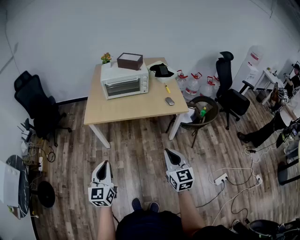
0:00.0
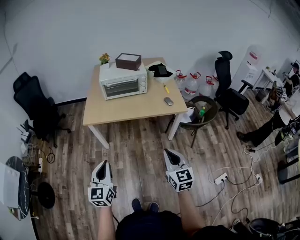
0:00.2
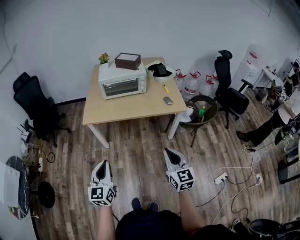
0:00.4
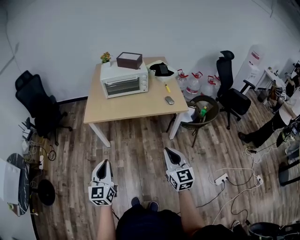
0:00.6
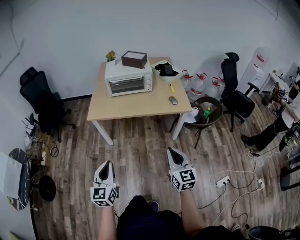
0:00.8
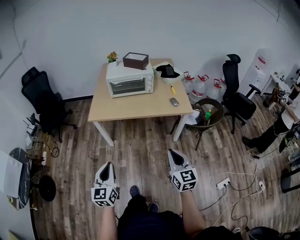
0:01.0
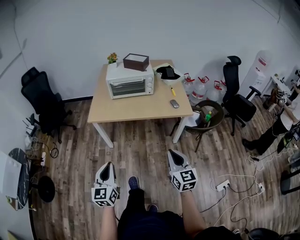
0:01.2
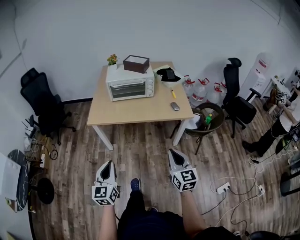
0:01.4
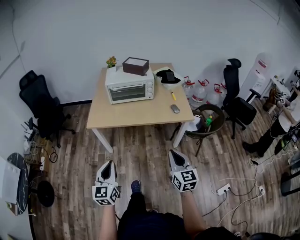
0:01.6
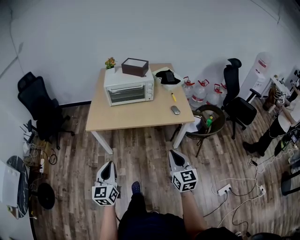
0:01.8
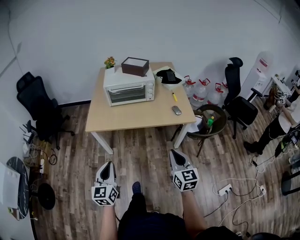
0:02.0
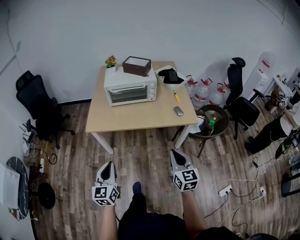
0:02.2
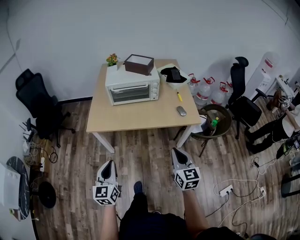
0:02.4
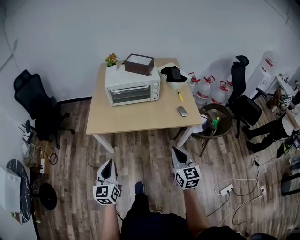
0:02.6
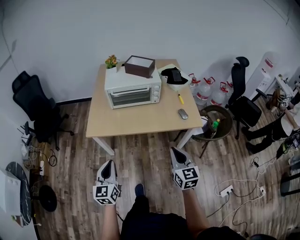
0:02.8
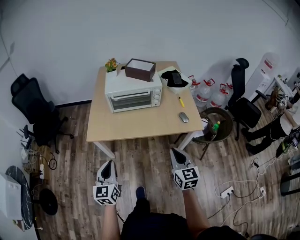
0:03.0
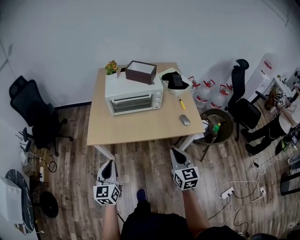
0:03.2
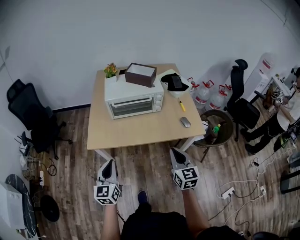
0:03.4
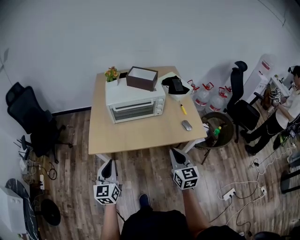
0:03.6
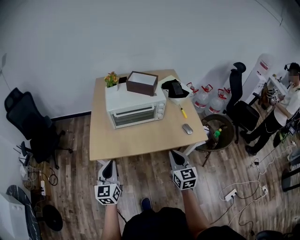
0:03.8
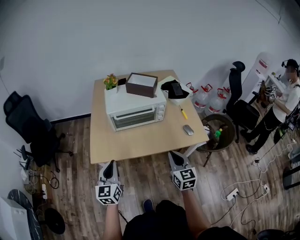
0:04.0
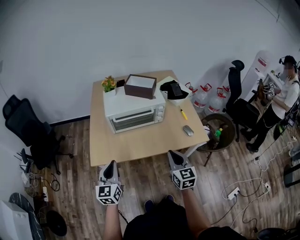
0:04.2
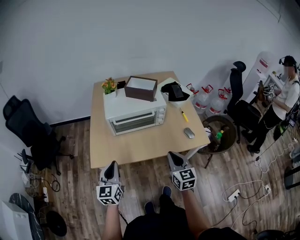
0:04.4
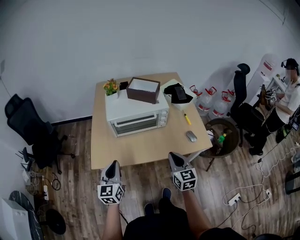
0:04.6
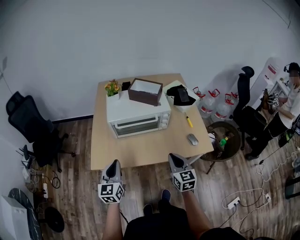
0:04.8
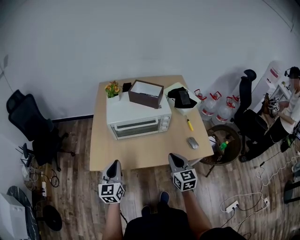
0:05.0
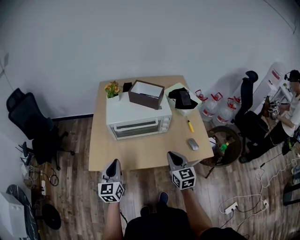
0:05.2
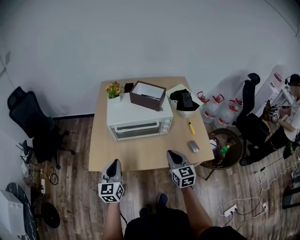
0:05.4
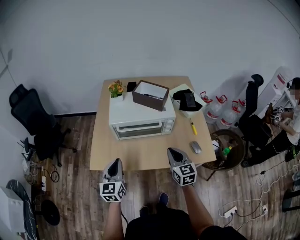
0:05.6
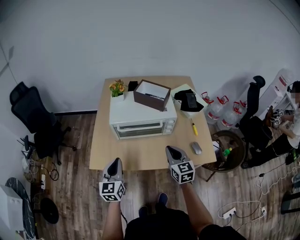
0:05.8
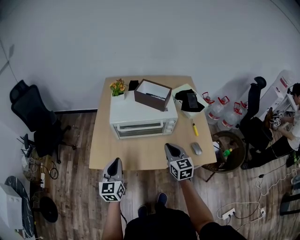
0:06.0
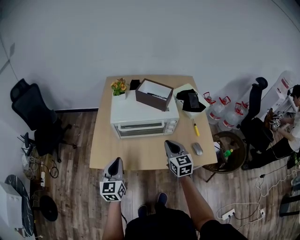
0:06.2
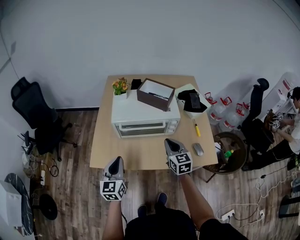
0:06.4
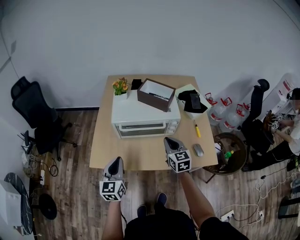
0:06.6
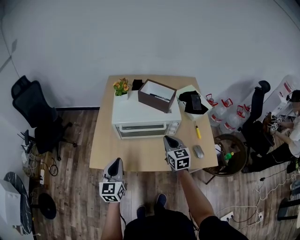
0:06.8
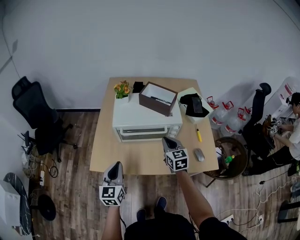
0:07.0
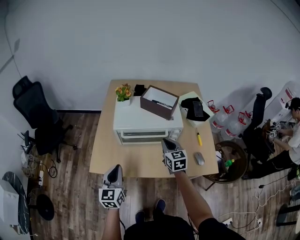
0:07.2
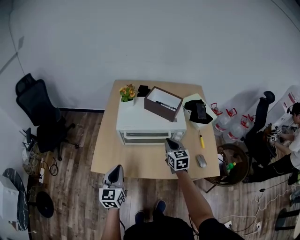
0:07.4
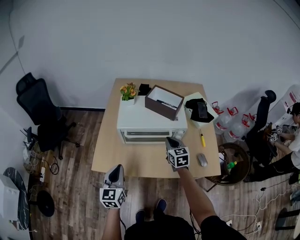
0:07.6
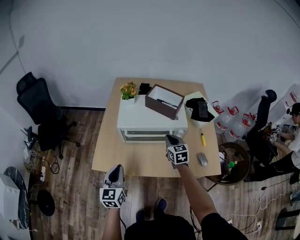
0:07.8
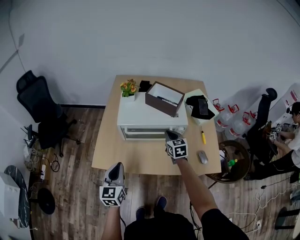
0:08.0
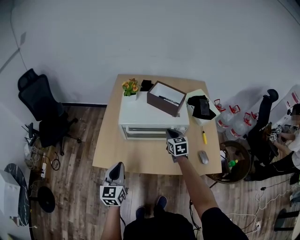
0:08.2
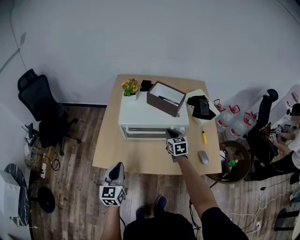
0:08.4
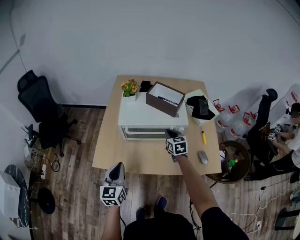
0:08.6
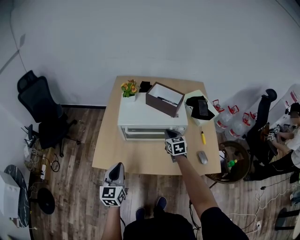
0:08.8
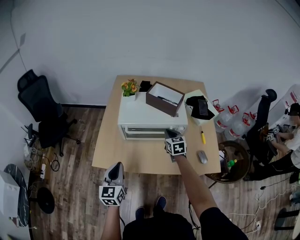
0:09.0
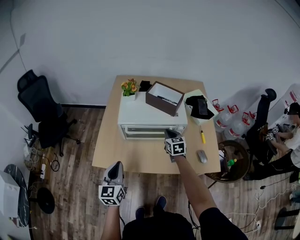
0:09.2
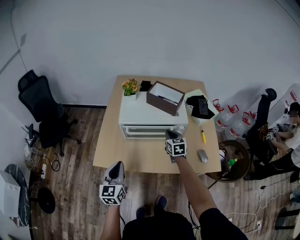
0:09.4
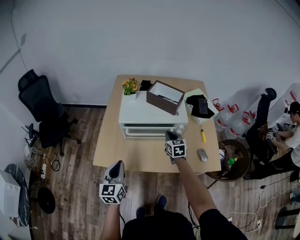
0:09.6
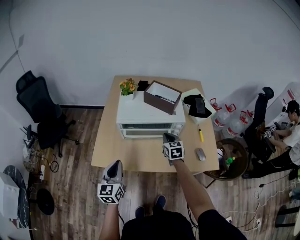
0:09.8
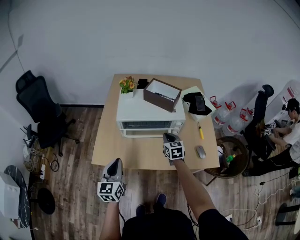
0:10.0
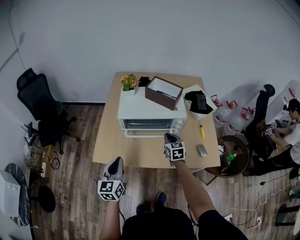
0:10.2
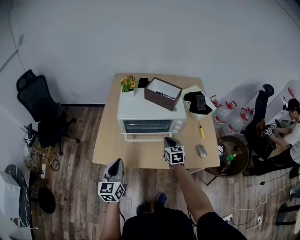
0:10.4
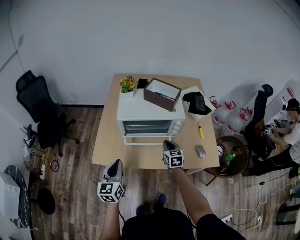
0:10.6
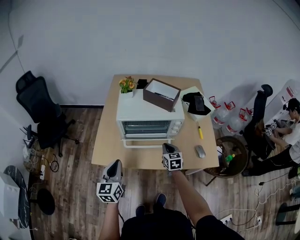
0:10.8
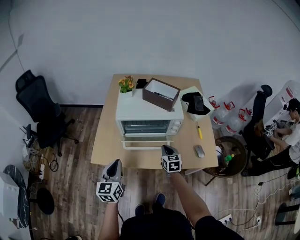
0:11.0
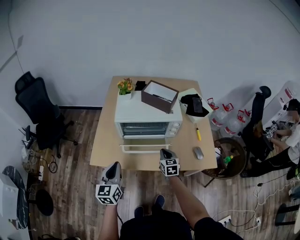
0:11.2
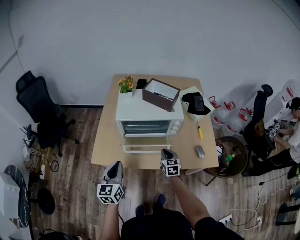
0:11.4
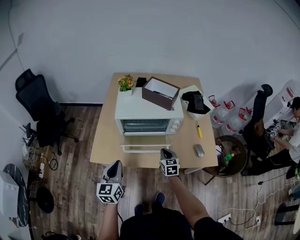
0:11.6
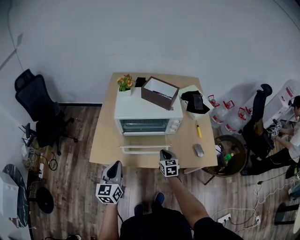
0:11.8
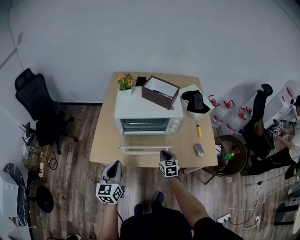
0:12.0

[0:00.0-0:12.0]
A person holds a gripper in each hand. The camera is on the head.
0:00.0 to 0:01.6: Both grippers move forward, approximately 5 cm.
0:01.6 to 0:03.0: Both grippers travel together forward, approximately 20 cm.
0:03.0 to 0:04.4: Both grippers travel together forward, some 15 cm.
0:04.4 to 0:06.0: The right gripper is displaced forward by roughly 15 cm. Meanwhile the left gripper moves forward, roughly 10 cm.
0:06.0 to 0:07.6: The right gripper travels forward by roughly 10 cm.
0:07.6 to 0:09.0: The grippers move only a little.
0:09.0 to 0:10.4: The right gripper is displaced backward by some 10 cm.
0:10.4 to 0:12.0: The right gripper shifts approximately 10 cm downward and backward.

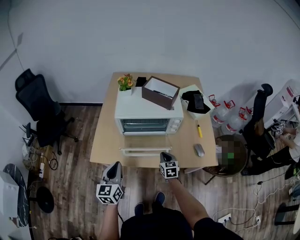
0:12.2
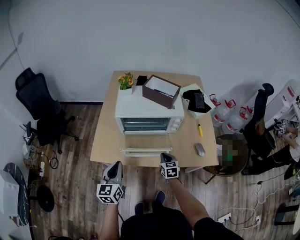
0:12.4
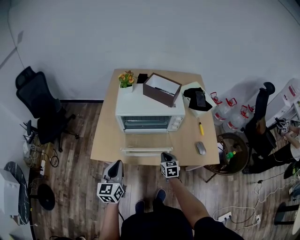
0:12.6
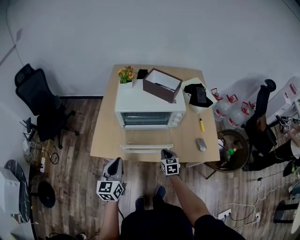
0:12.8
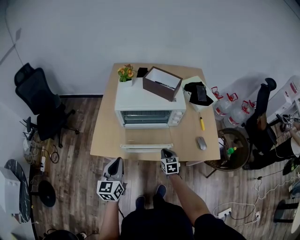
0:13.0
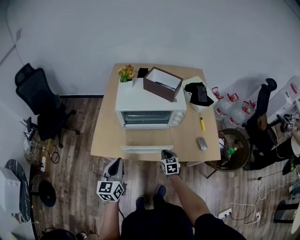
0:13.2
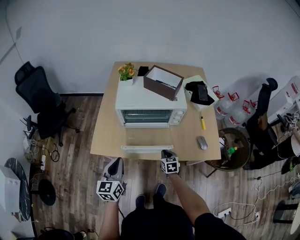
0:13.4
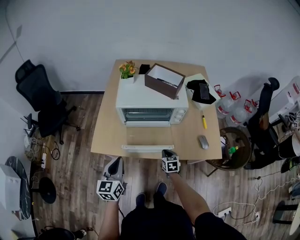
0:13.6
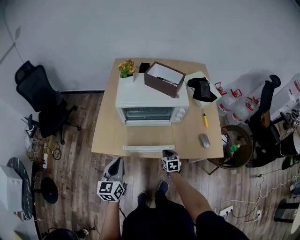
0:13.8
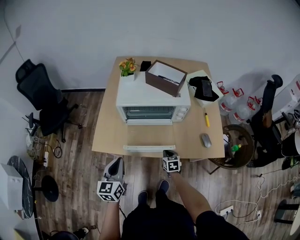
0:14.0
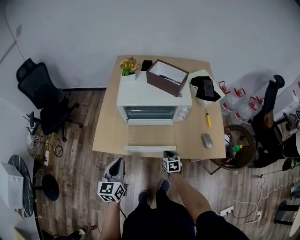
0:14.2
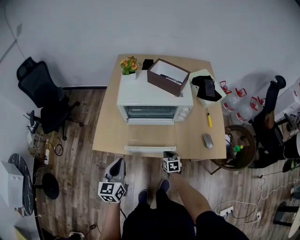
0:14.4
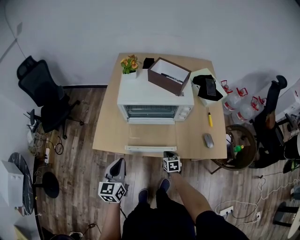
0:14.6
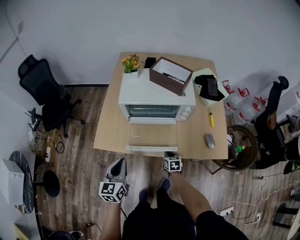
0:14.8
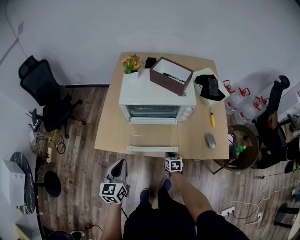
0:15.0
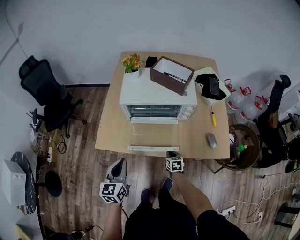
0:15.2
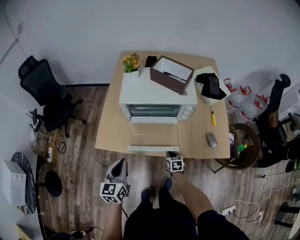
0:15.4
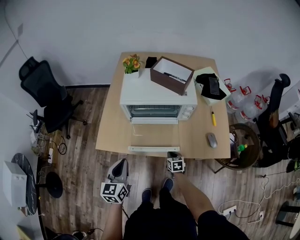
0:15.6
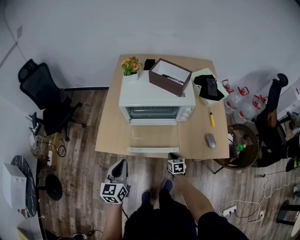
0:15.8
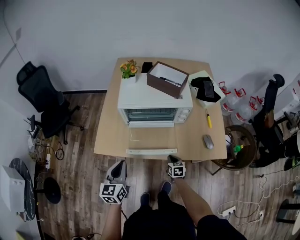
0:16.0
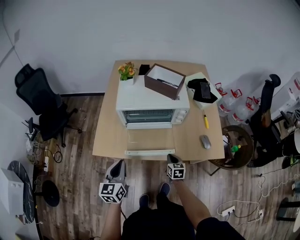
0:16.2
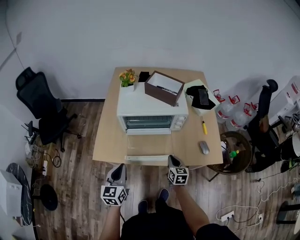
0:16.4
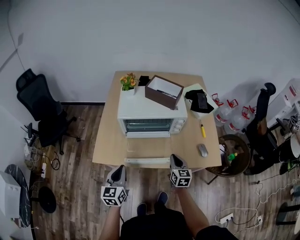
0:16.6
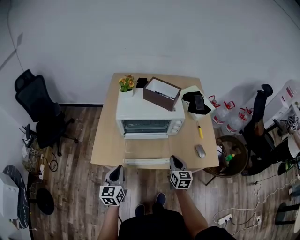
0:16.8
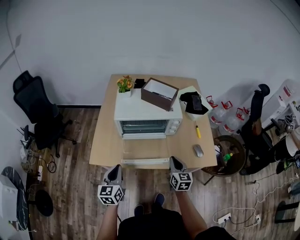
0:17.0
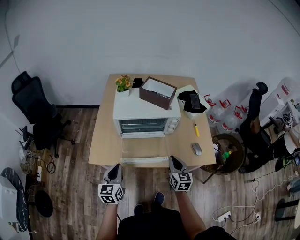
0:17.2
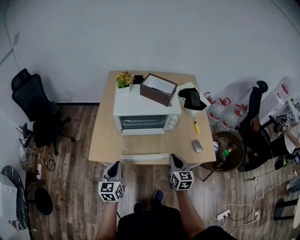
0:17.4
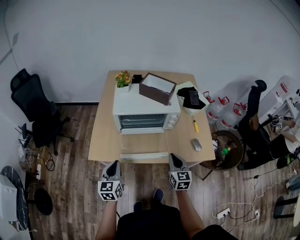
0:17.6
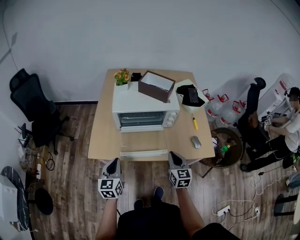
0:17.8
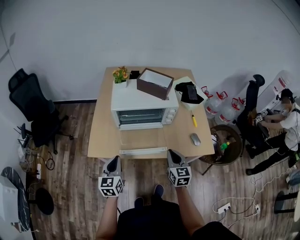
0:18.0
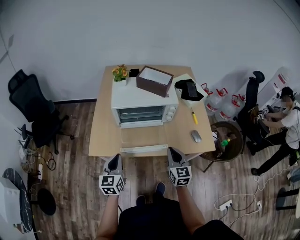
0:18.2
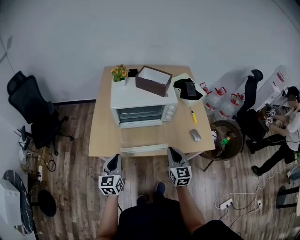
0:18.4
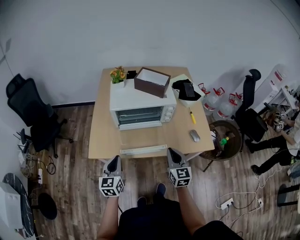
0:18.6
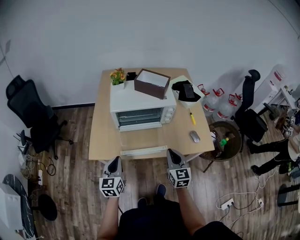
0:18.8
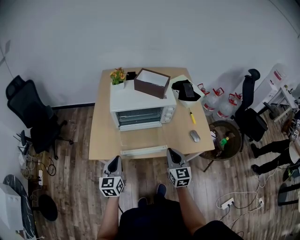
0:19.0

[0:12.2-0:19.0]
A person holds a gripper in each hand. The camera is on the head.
0:12.2 to 0:13.6: The right gripper is displaced downward by some 5 cm.
0:13.6 to 0:15.0: The right gripper heads downward, covering about 5 cm.
0:15.0 to 0:16.2: The right gripper moves upward, roughly 5 cm.
0:16.2 to 0:17.6: The right gripper shifts roughly 20 cm upward, and changes its angle by approximately 20 degrees.
0:17.6 to 0:19.0: The grippers make only small movements.

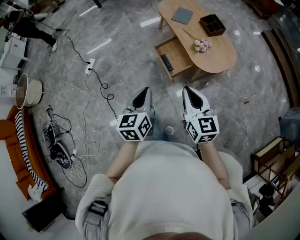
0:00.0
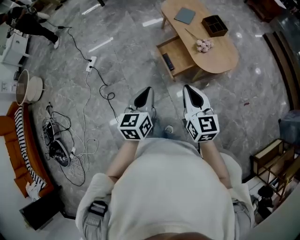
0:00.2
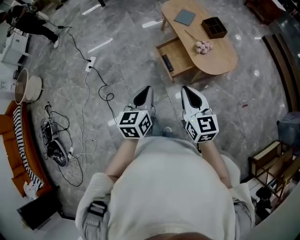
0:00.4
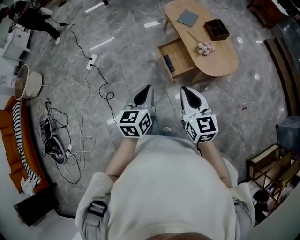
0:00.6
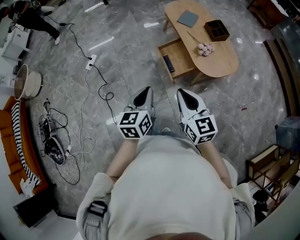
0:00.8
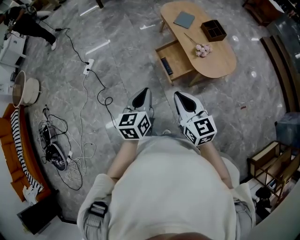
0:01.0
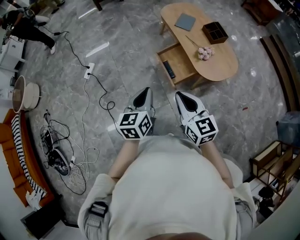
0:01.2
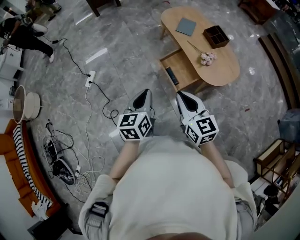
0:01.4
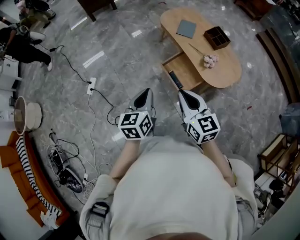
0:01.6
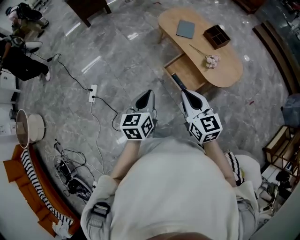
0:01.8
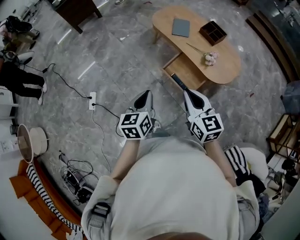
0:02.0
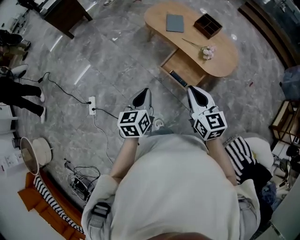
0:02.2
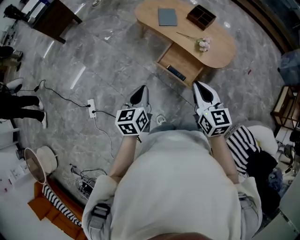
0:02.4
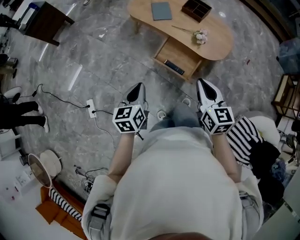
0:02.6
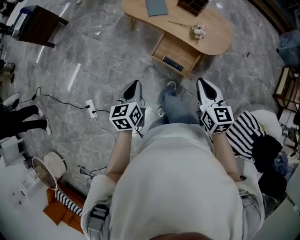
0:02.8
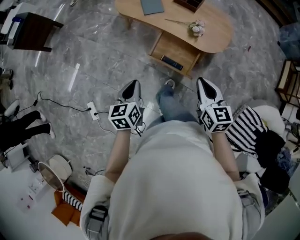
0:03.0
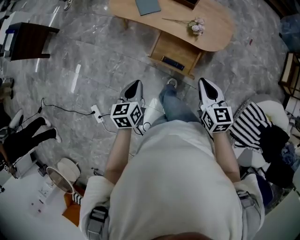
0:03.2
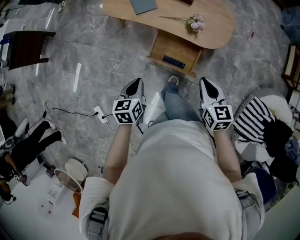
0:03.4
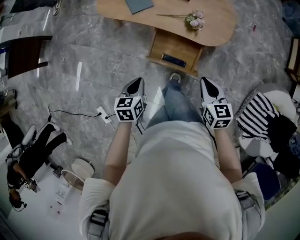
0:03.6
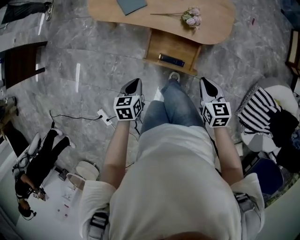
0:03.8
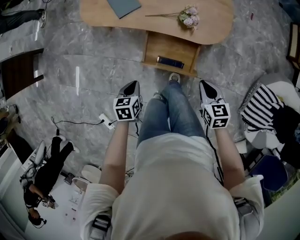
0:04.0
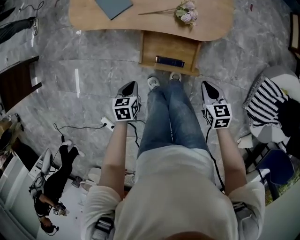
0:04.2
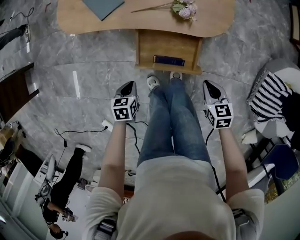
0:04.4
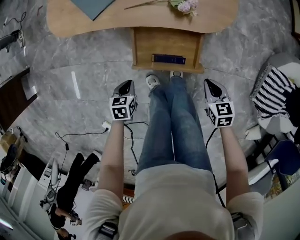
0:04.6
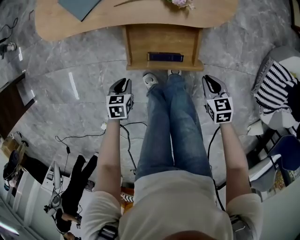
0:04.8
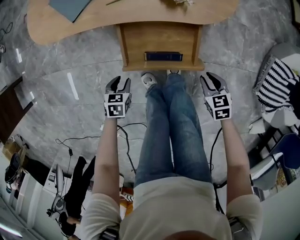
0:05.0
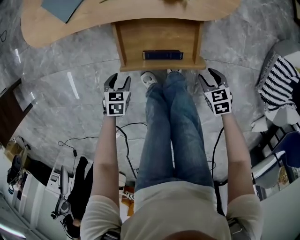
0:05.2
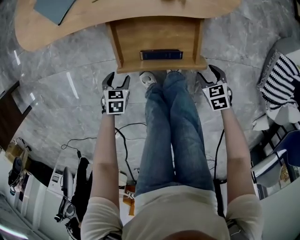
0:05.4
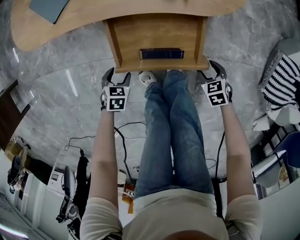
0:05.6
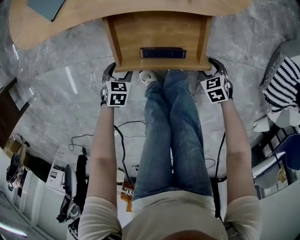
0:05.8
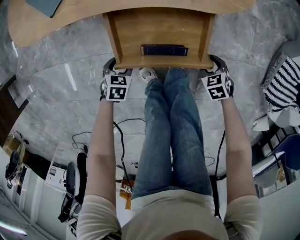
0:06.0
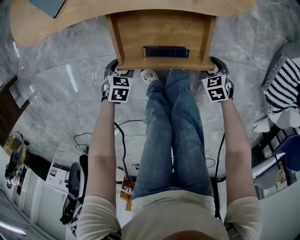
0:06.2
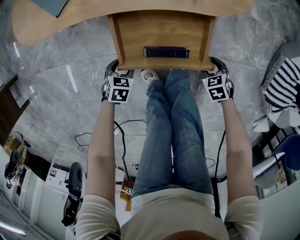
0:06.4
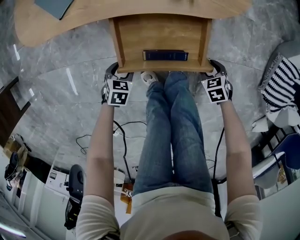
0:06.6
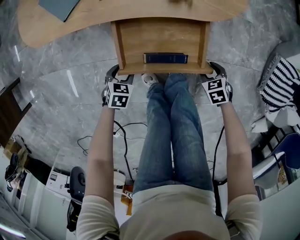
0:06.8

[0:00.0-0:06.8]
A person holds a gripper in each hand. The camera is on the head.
0:00.0 to 0:01.4: The left gripper shifts roughly 15 cm forward and to the left. The right gripper goes about 15 cm to the left and forward.
0:01.4 to 0:02.8: The left gripper moves roughly 25 cm, and changes its angle by about 30 degrees. Meanwhile the right gripper shifts by about 15 cm, and changes its angle by roughly 40 degrees.
0:02.8 to 0:04.0: Both grippers move downward and forward, about 25 cm. The right gripper turns by some 30 degrees. The left gripper rotates approximately 40 degrees.
0:04.0 to 0:05.4: Both grippers move downward, approximately 30 cm. The right gripper turns by some 20 degrees, and opens its fingers; the left gripper swivels roughly 30 degrees, and opens its fingers.
0:05.4 to 0:06.8: The grippers make only small movements.
